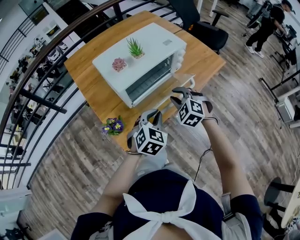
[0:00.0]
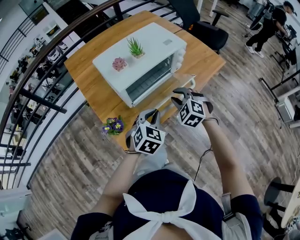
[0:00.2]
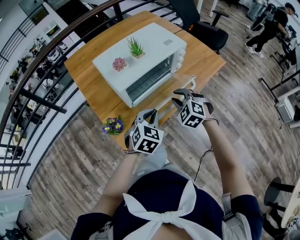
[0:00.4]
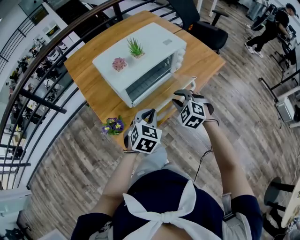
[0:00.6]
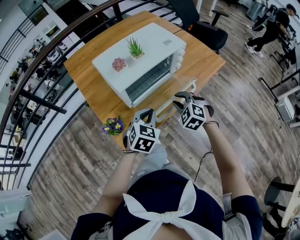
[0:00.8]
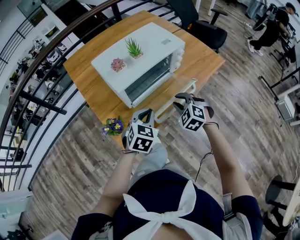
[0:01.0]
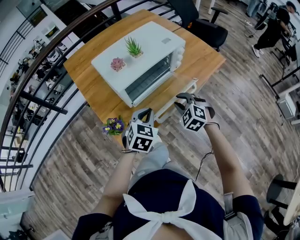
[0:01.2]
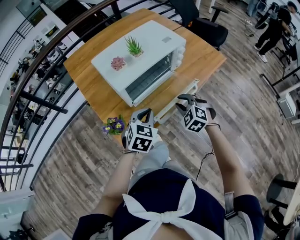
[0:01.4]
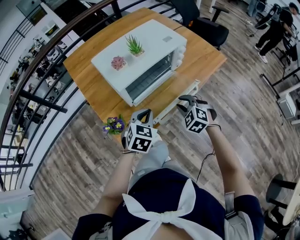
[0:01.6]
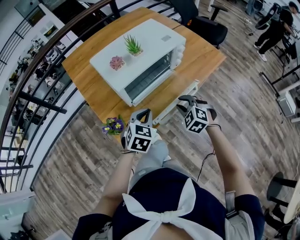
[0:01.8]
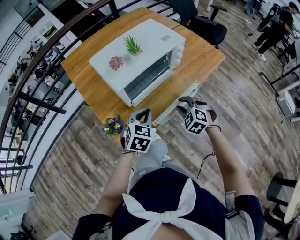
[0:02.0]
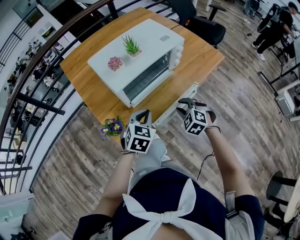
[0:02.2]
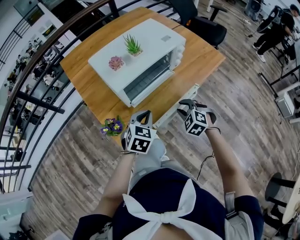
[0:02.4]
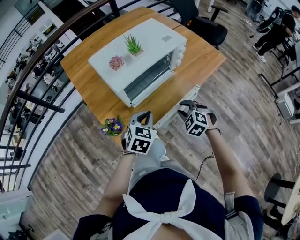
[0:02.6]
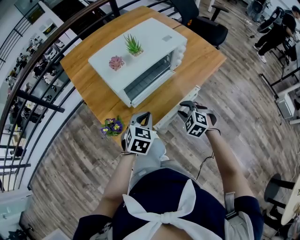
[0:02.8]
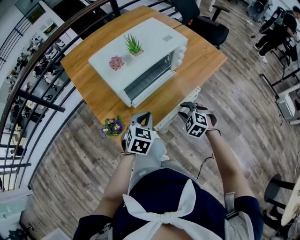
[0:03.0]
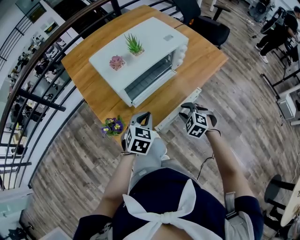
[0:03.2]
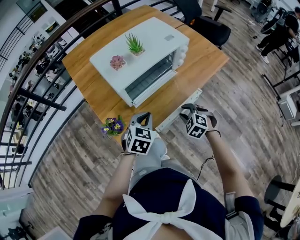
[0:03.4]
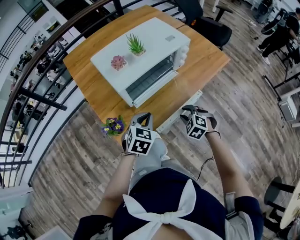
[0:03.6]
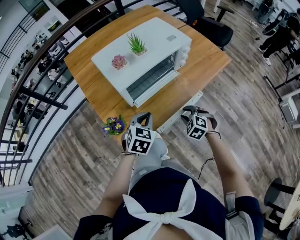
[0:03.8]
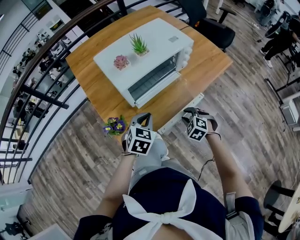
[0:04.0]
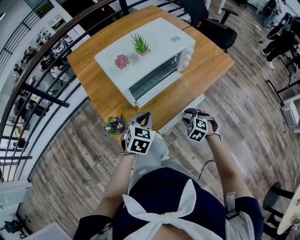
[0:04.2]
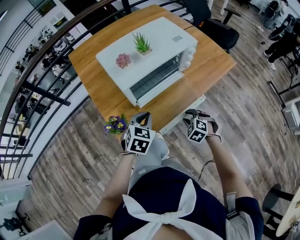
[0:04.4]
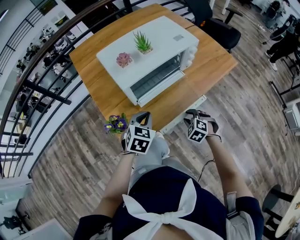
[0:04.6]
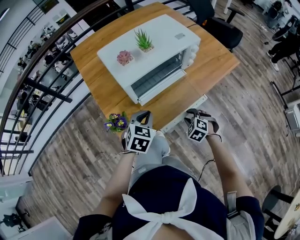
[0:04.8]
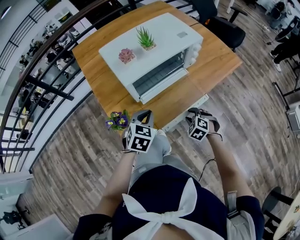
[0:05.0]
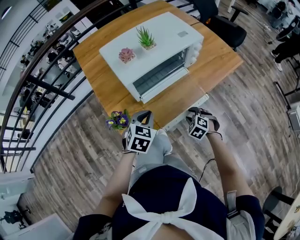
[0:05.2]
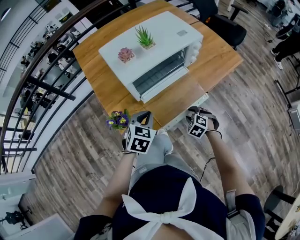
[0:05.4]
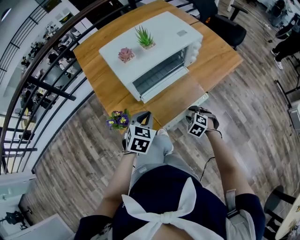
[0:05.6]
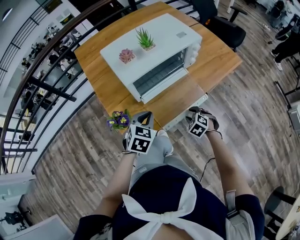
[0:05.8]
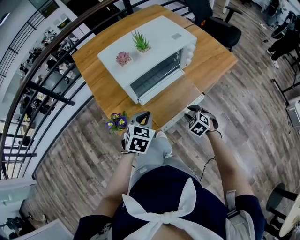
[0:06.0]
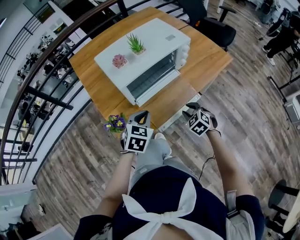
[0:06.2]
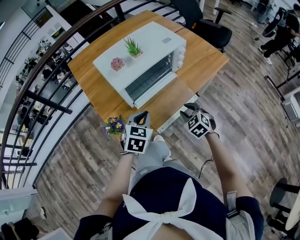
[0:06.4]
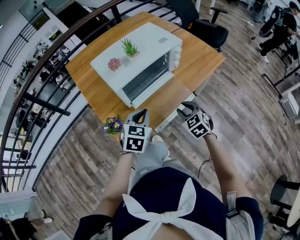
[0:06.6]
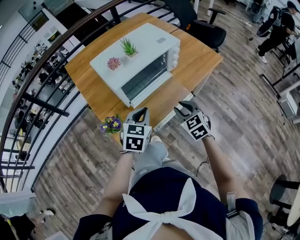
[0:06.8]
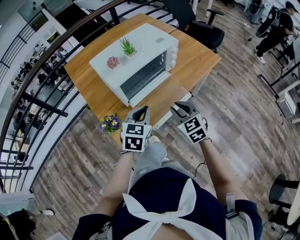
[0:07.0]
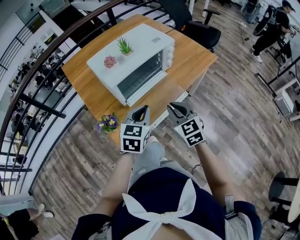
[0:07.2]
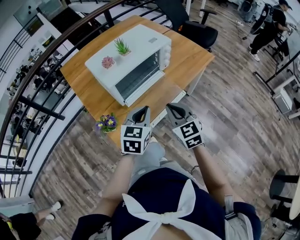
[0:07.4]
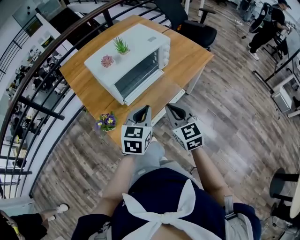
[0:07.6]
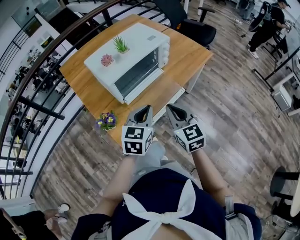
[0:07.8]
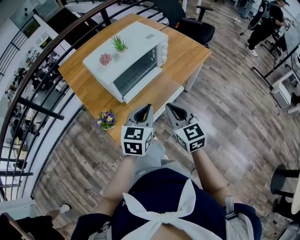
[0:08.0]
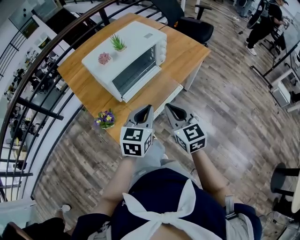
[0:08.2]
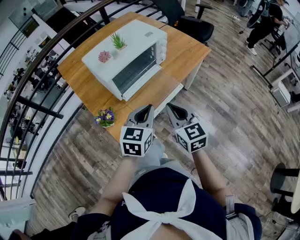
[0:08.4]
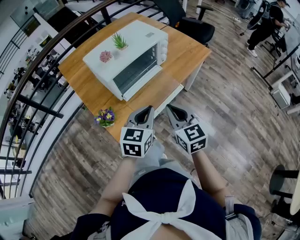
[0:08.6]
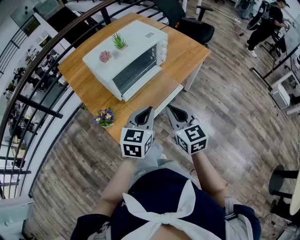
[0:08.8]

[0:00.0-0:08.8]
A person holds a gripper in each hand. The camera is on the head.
0:00.0 to 0:01.4: The right gripper shifts by about 5 cm.
0:01.4 to 0:03.0: The right gripper moves downward, some 5 cm.
0:03.0 to 0:04.4: The right gripper shifts approximately 5 cm downward.
0:04.4 to 0:05.8: The grippers move only a little.
0:05.8 to 0:07.4: The left gripper travels upward and to the right by some 10 cm, and rotates roughly 20 degrees. The right gripper travels upward by some 25 cm, angles its fingers upward, by some 40 degrees, and closes up.
0:07.4 to 0:08.8: The right gripper shifts by about 5 cm.

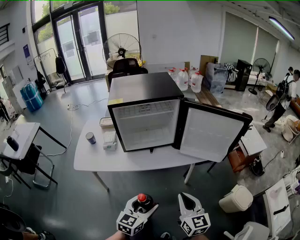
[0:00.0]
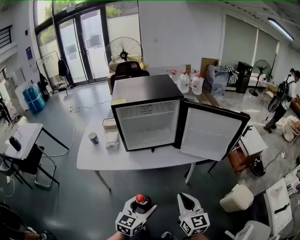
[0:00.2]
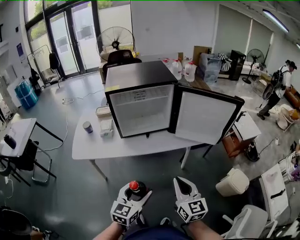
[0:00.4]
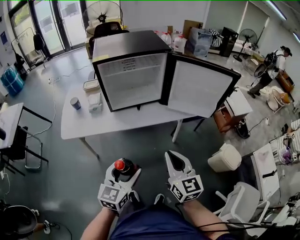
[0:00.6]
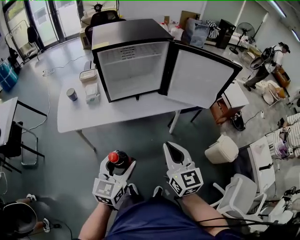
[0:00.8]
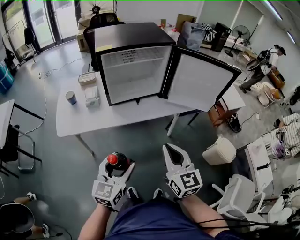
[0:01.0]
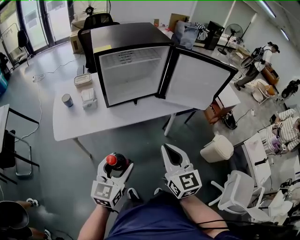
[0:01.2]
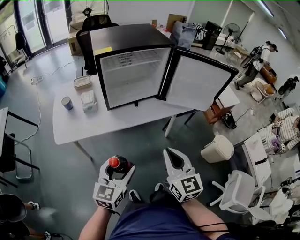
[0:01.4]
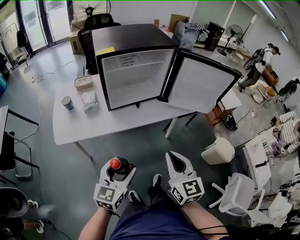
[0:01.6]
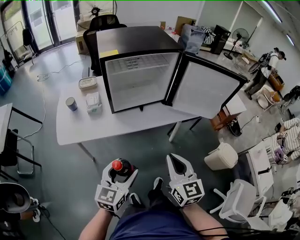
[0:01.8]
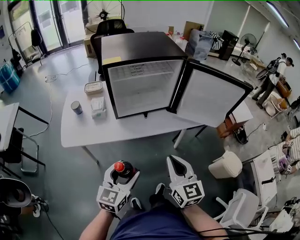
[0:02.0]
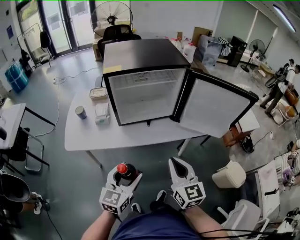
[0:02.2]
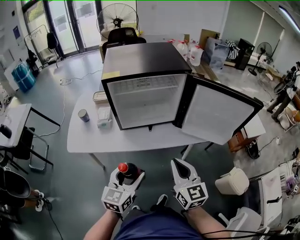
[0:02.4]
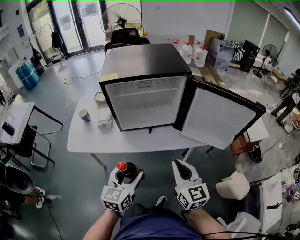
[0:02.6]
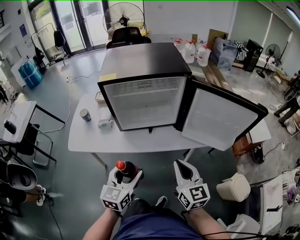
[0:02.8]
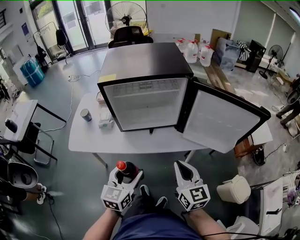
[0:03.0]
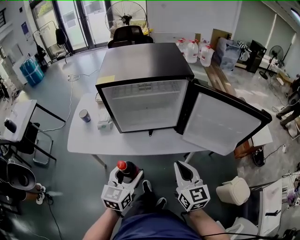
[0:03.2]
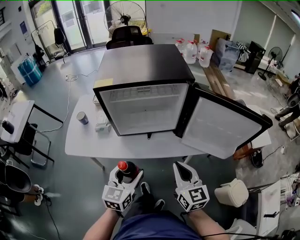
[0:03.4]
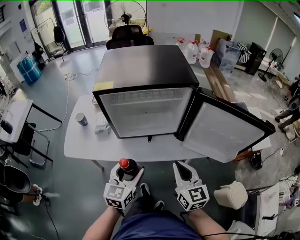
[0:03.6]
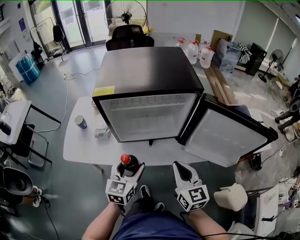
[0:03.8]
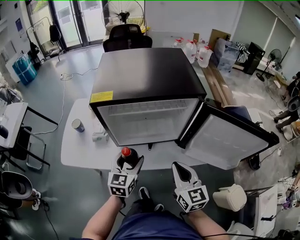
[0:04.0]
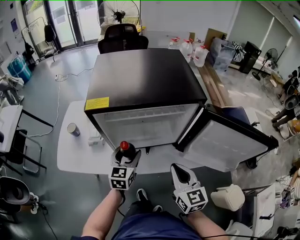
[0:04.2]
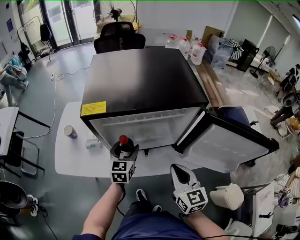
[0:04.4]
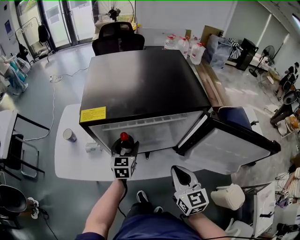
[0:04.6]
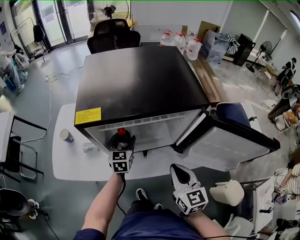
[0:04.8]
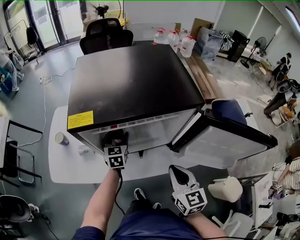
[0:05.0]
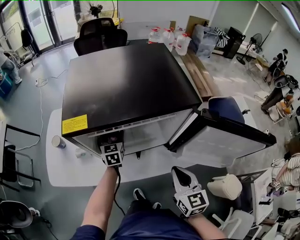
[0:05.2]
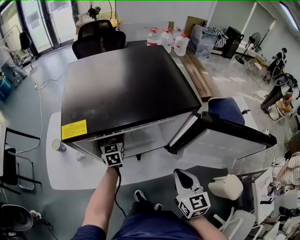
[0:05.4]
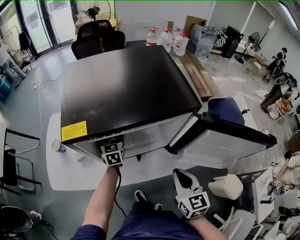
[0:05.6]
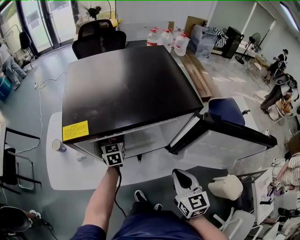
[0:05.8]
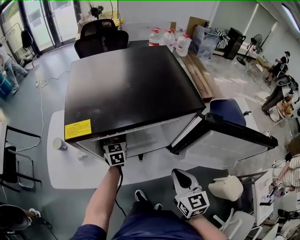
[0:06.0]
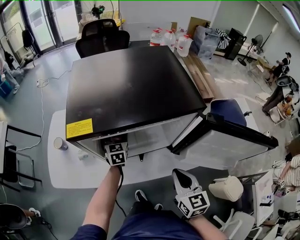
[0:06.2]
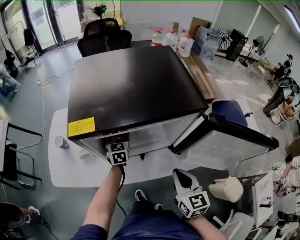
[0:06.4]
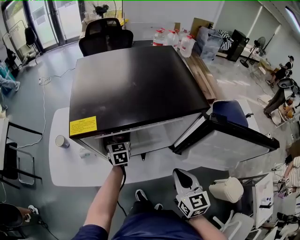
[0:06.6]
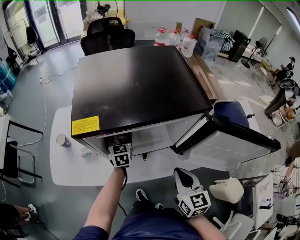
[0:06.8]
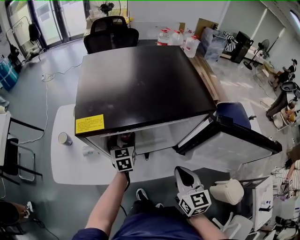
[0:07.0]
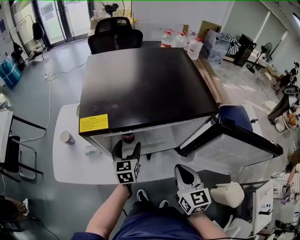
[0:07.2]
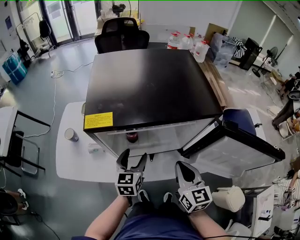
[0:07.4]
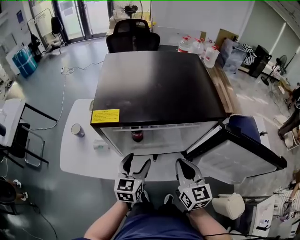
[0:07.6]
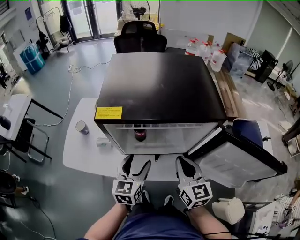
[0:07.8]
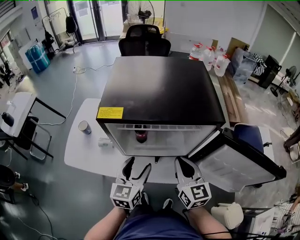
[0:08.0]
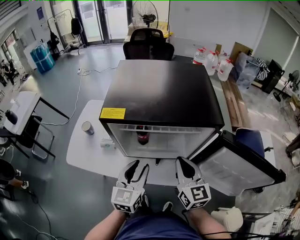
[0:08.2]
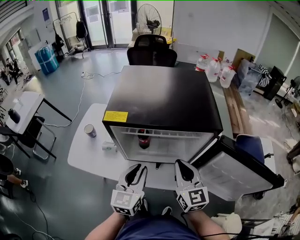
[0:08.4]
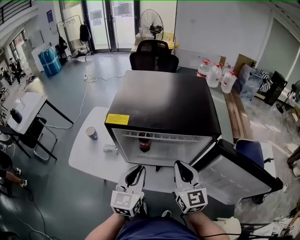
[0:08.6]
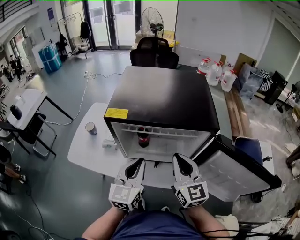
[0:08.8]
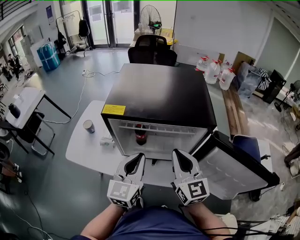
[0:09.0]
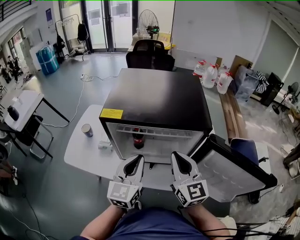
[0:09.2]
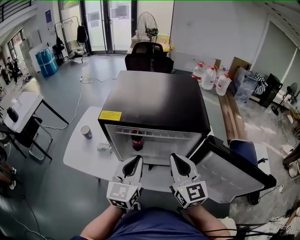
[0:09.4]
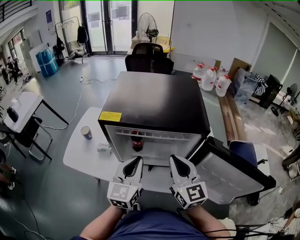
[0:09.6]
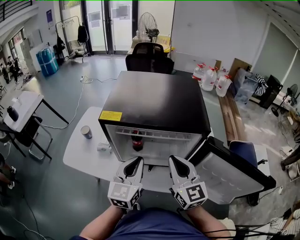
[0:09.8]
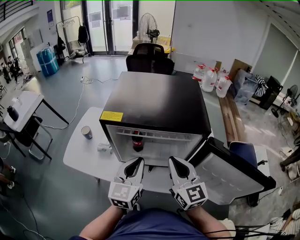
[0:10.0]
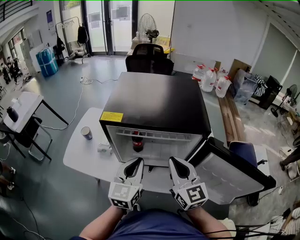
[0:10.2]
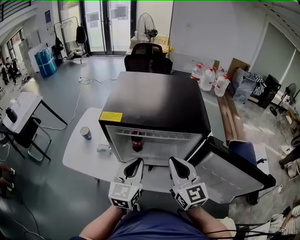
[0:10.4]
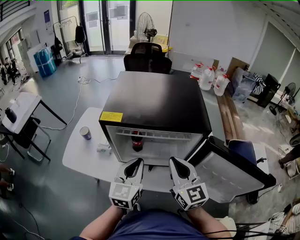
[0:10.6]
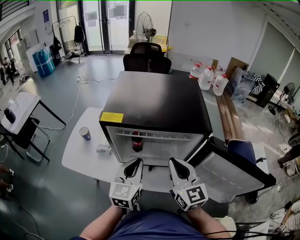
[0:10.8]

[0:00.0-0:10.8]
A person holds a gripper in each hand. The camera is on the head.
0:00.0 to 0:01.6: The grippers both shift to the left by roughly 10 cm.
0:01.6 to 0:03.0: Both grippers travel together forward and to the right, roughly 15 cm.
0:03.0 to 0:04.6: The right gripper heads forward, covering about 15 cm. The left gripper goes some 35 cm forward.
0:04.6 to 0:06.2: The left gripper goes approximately 10 cm forward.
0:06.2 to 0:07.8: The right gripper travels forward by roughly 5 cm, while the left gripper heads backward and upward, covering approximately 20 cm.
0:07.8 to 0:09.2: The two grippers go about 10 cm upward. The left gripper closes its fingers.
0:09.2 to 0:10.8: There are only small adjustments of the grippers.

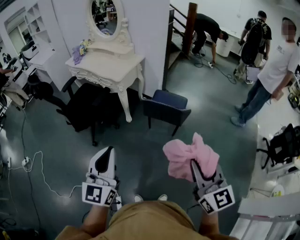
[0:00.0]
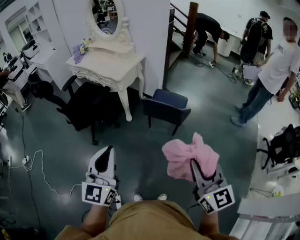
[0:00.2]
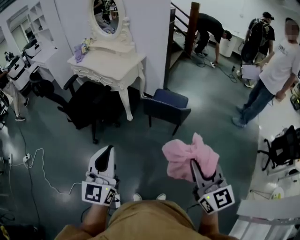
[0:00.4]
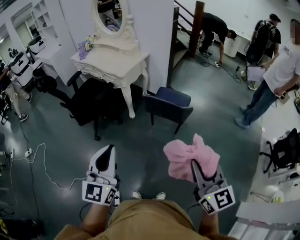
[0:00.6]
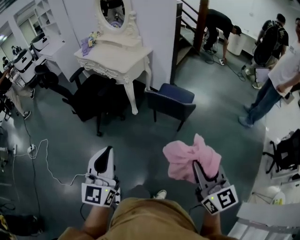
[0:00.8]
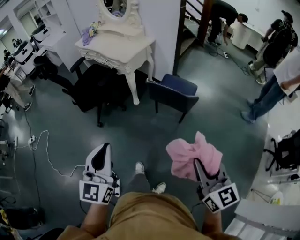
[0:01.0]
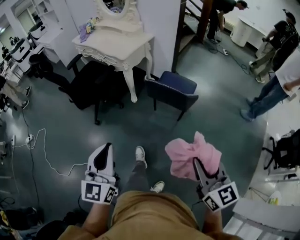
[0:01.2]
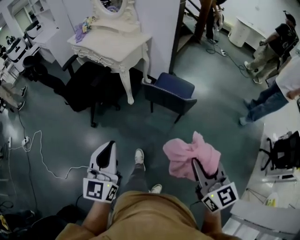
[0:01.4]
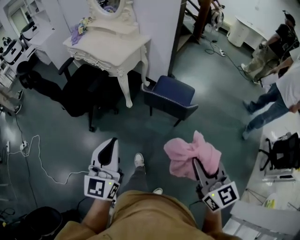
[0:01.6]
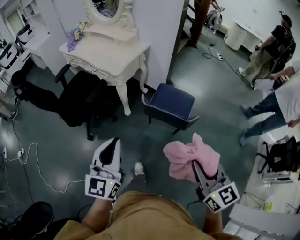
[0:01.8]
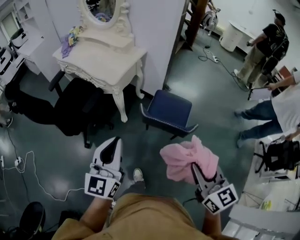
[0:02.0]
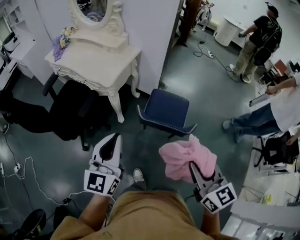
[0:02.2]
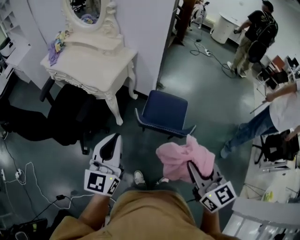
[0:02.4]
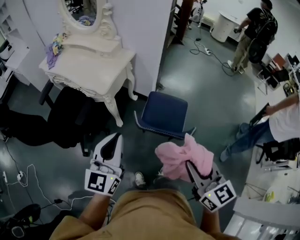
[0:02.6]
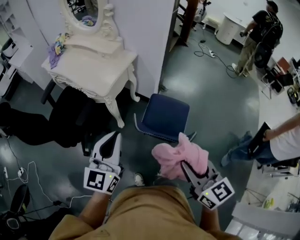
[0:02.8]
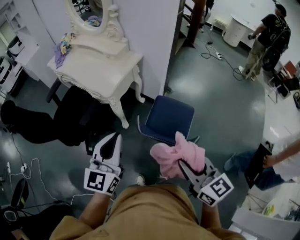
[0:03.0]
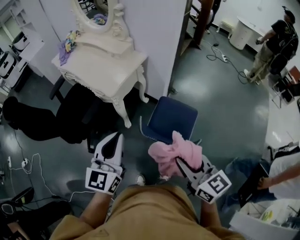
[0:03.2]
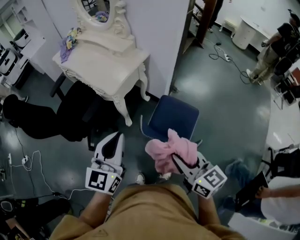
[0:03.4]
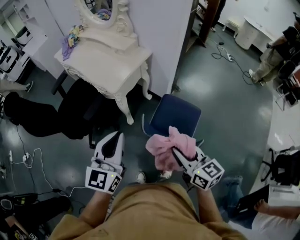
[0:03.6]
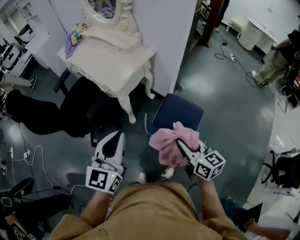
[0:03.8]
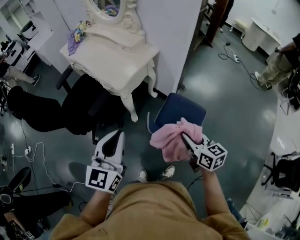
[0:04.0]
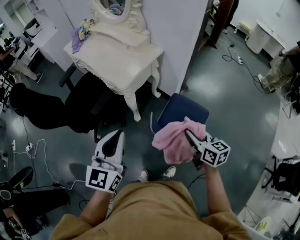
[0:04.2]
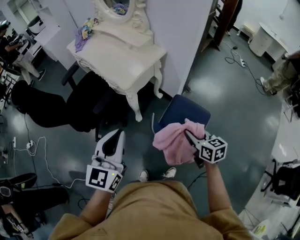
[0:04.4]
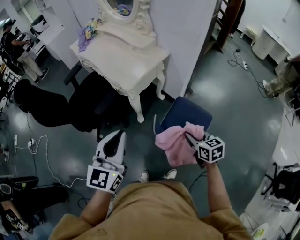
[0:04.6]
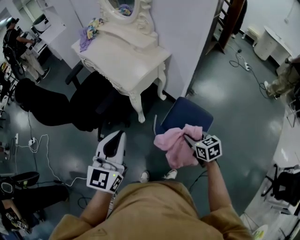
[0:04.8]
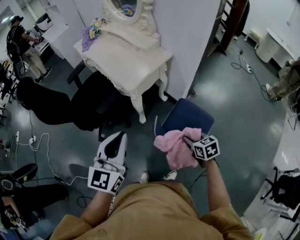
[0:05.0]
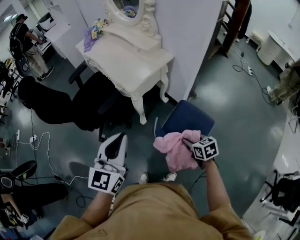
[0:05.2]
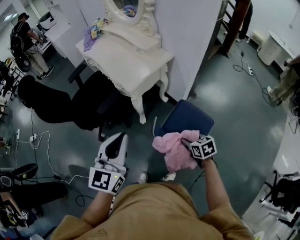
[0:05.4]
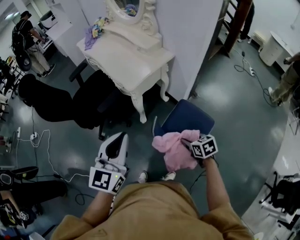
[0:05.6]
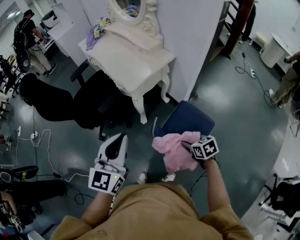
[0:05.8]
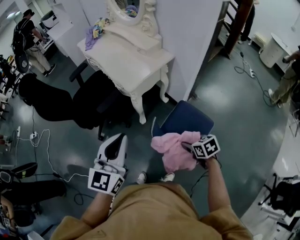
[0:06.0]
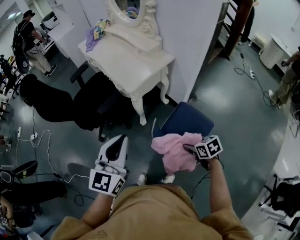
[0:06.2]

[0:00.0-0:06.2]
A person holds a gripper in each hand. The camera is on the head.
0:00.0 to 0:01.6: The left gripper heads forward, downward and to the right, covering about 15 cm, while the right gripper is displaced forward and downward by some 15 cm.
0:01.6 to 0:03.2: Both grippers move forward, approximately 30 cm.
0:03.2 to 0:04.6: The right gripper shifts approximately 20 cm downward and forward, and turns by about 20 degrees.
0:04.6 to 0:06.2: The right gripper shifts by about 5 cm, and rotates some 20 degrees.
